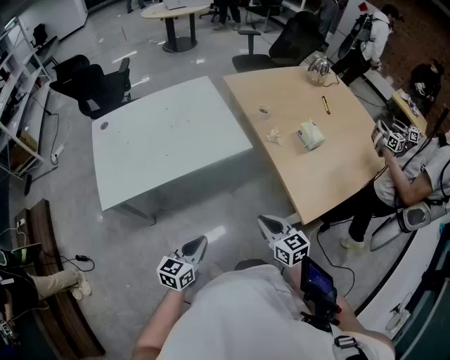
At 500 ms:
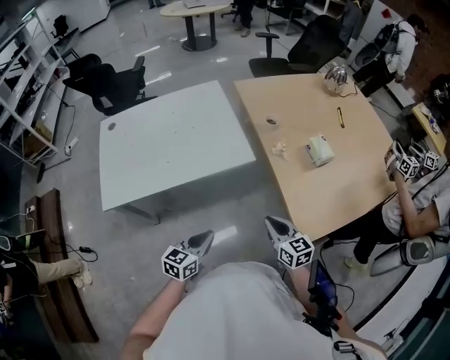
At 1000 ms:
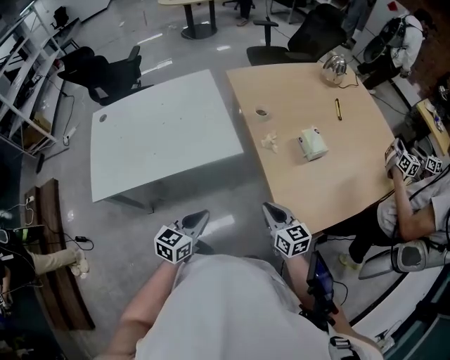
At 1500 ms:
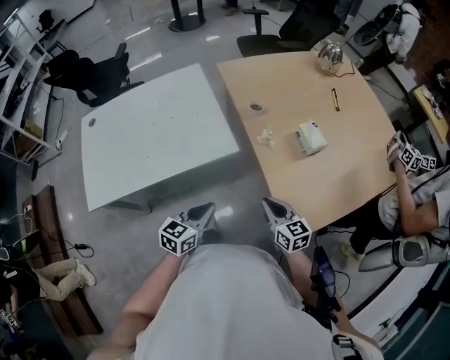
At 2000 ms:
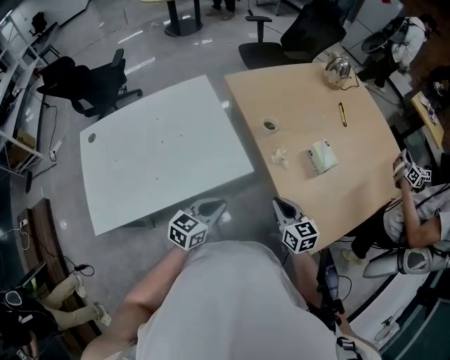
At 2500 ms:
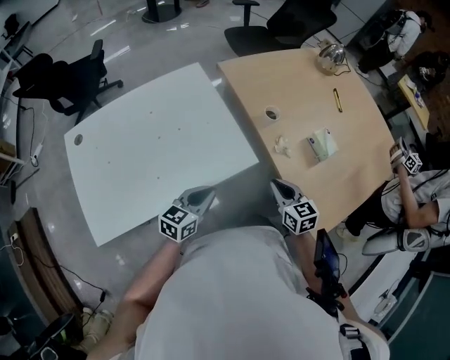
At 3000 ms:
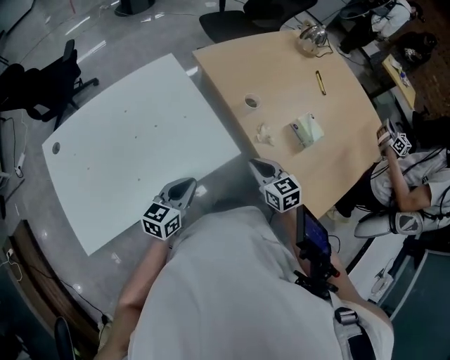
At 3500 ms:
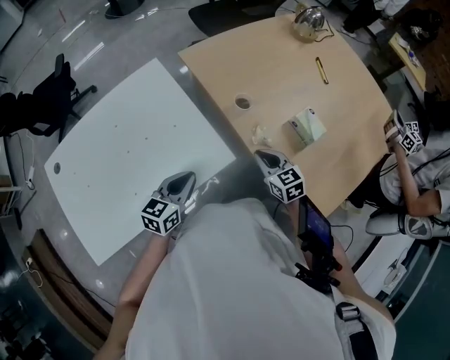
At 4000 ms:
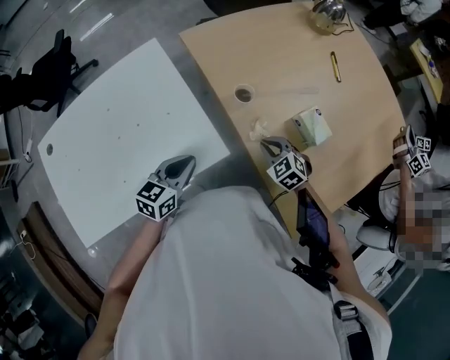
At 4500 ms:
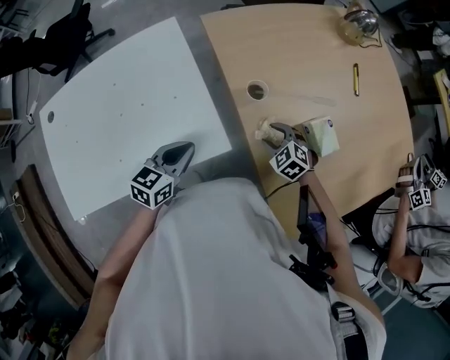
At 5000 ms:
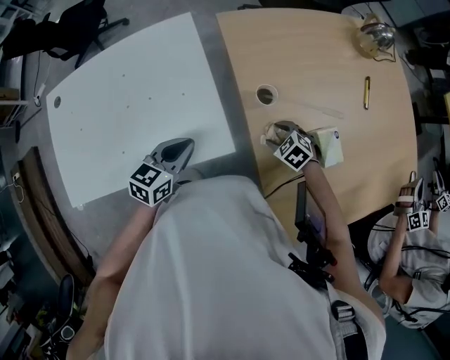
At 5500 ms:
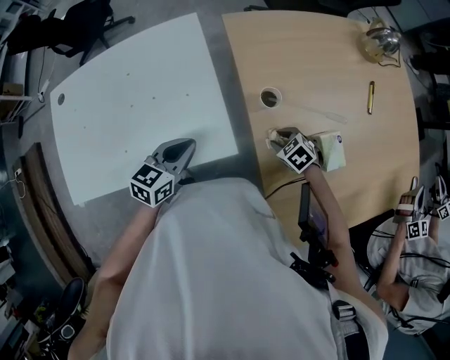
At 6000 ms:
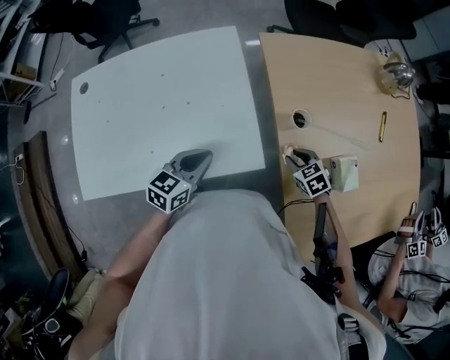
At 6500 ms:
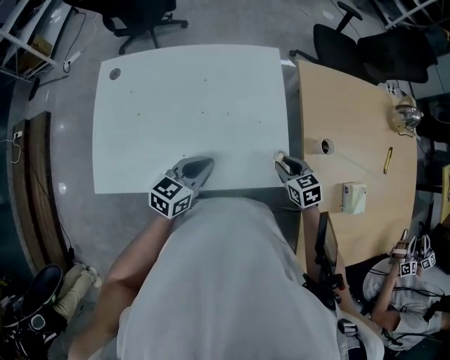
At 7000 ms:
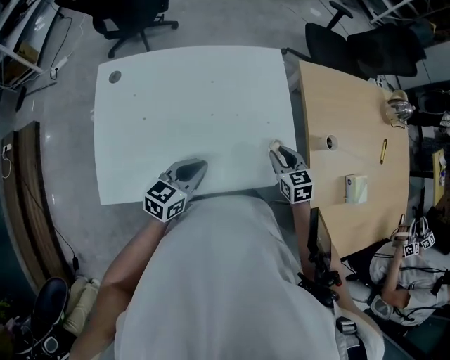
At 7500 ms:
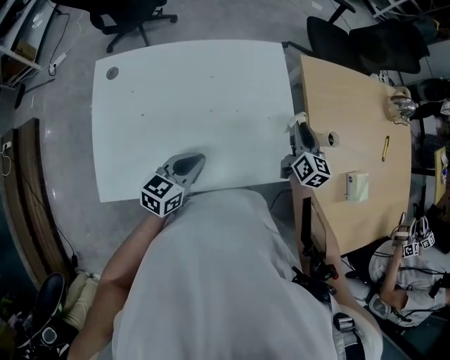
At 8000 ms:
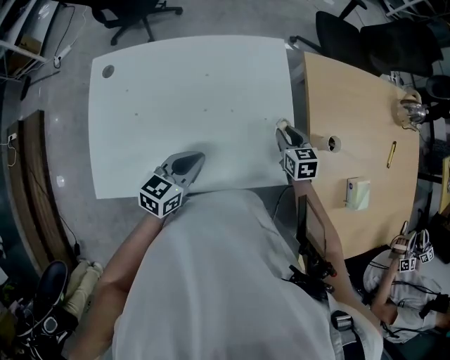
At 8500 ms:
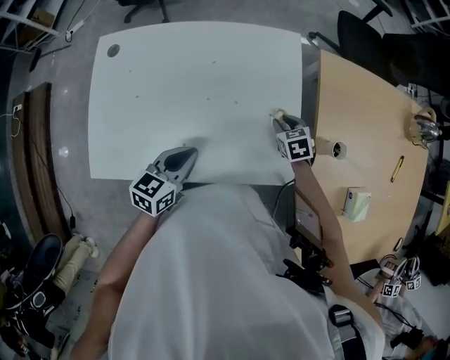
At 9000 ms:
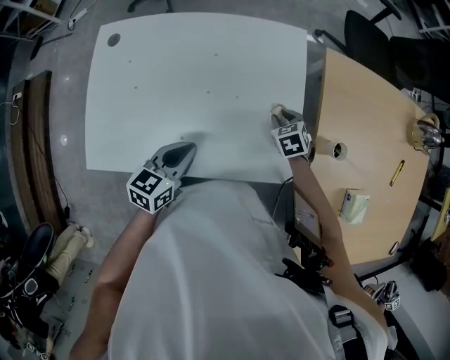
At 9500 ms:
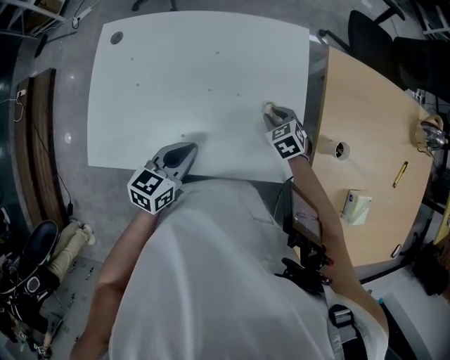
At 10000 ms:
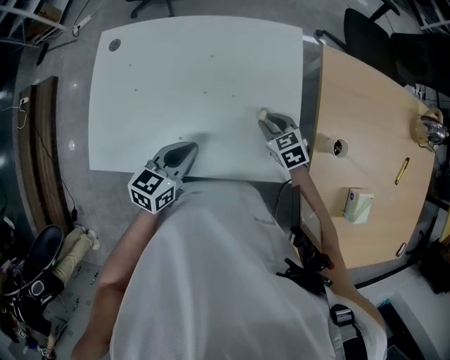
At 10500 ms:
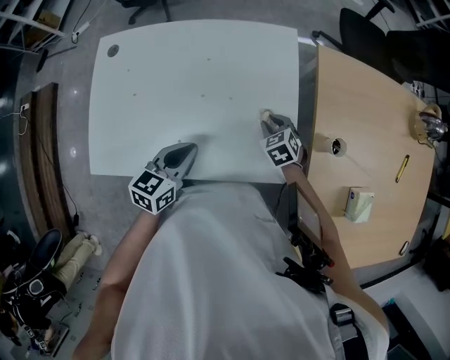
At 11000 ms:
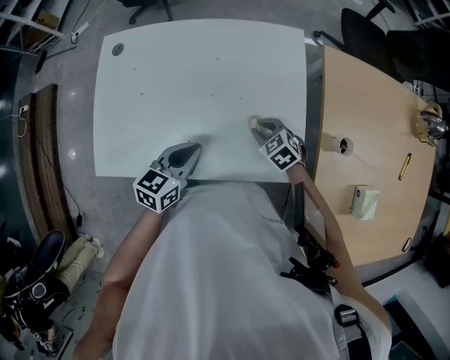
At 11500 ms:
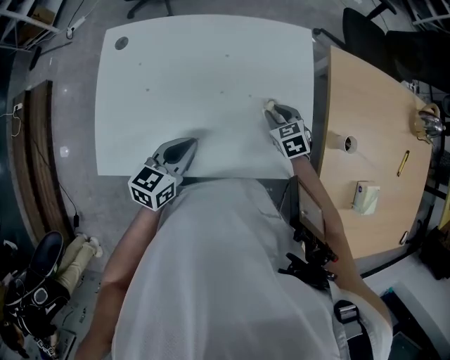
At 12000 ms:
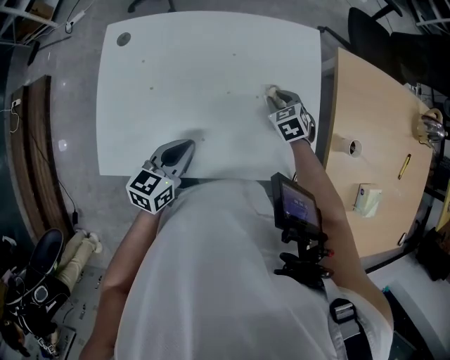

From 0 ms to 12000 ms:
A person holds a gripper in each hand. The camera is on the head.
From 0 ms to 2000 ms: The two grippers go some 25 cm forward.
From 2000 ms to 4000 ms: The left gripper is displaced forward by some 15 cm, while the right gripper is displaced forward and downward by roughly 20 cm, and swivels some 40 degrees.
From 4000 ms to 6000 ms: The left gripper travels to the left by some 5 cm; the right gripper ends up approximately 5 cm from where it was, and opens, then closes again.
From 6000 ms to 8000 ms: The right gripper heads to the left and forward, covering some 25 cm, and changes its angle by some 20 degrees, while the left gripper travels to the left by roughly 15 cm.
From 8000 ms to 10000 ms: The right gripper travels to the left by roughly 5 cm, and changes its angle by some 30 degrees.
From 10000 ms to 12000 ms: The left gripper shifts roughly 10 cm to the left. Meanwhile the right gripper shifts roughly 5 cm forward.

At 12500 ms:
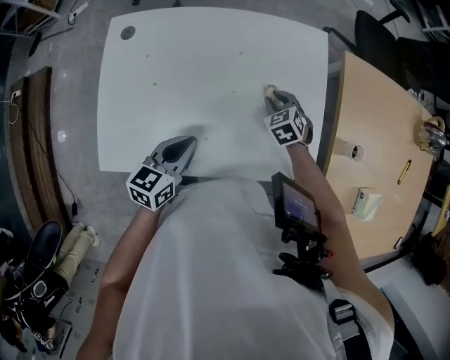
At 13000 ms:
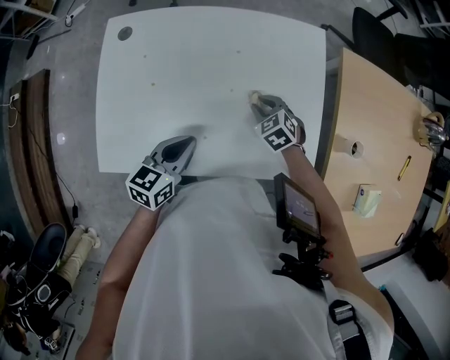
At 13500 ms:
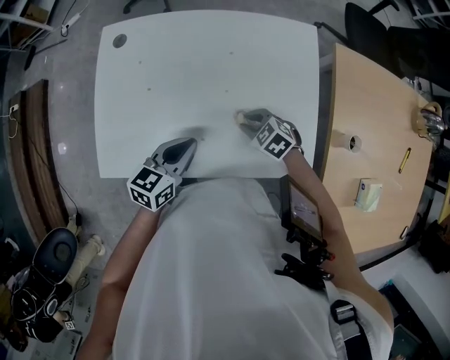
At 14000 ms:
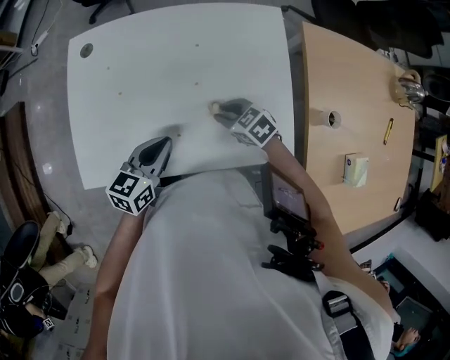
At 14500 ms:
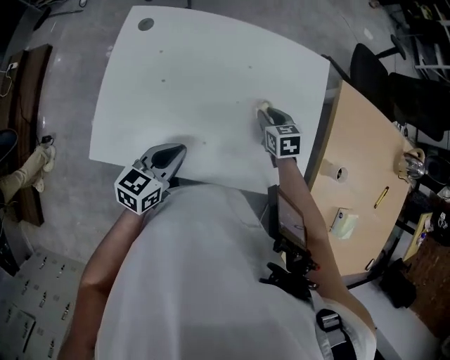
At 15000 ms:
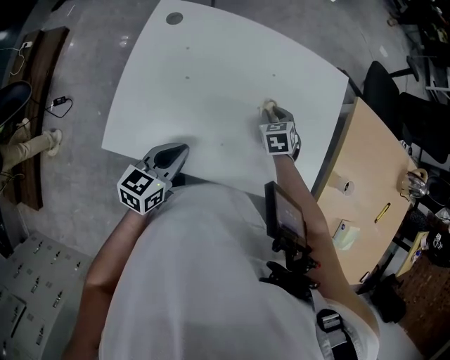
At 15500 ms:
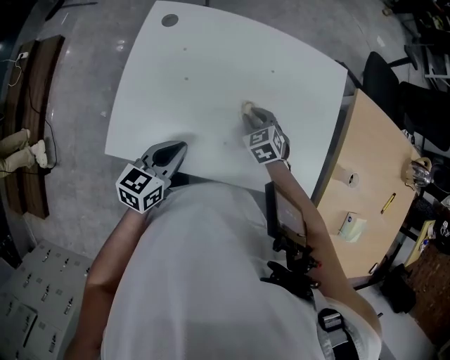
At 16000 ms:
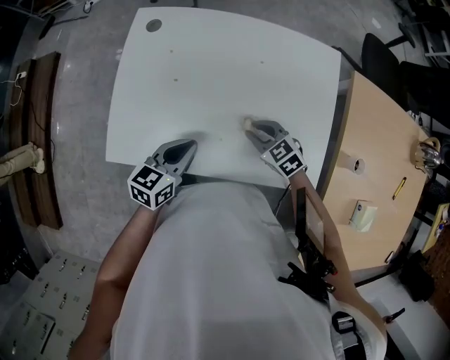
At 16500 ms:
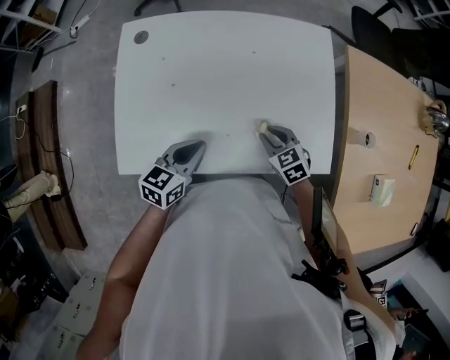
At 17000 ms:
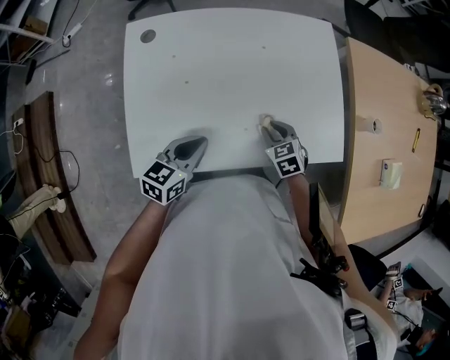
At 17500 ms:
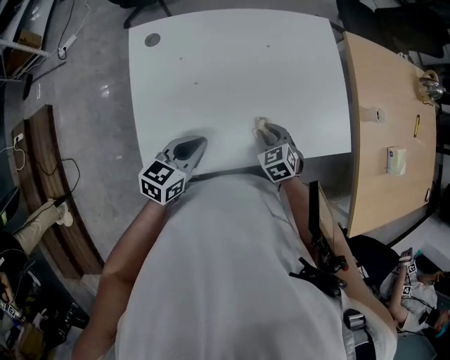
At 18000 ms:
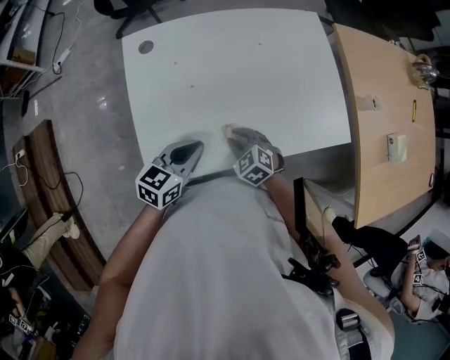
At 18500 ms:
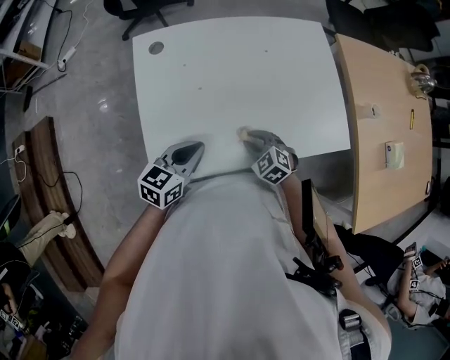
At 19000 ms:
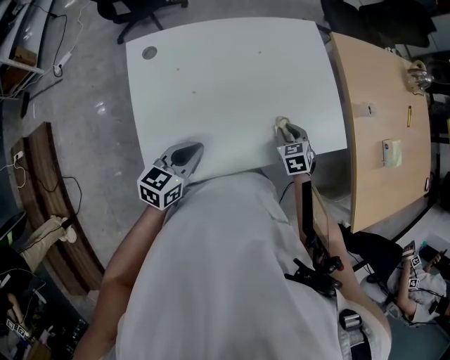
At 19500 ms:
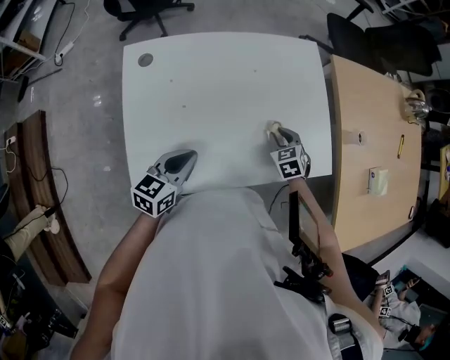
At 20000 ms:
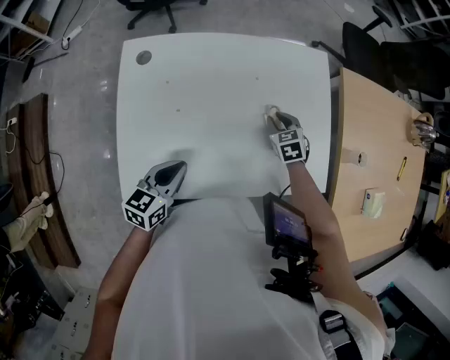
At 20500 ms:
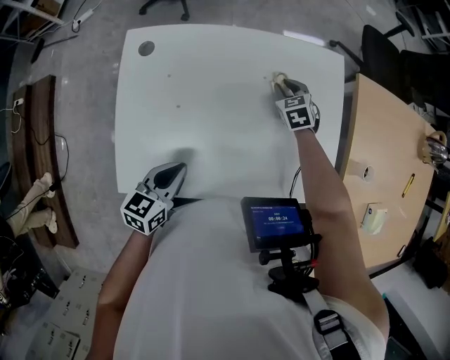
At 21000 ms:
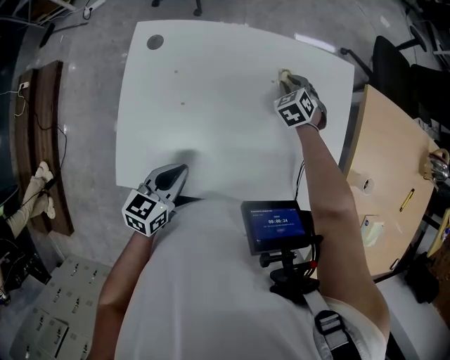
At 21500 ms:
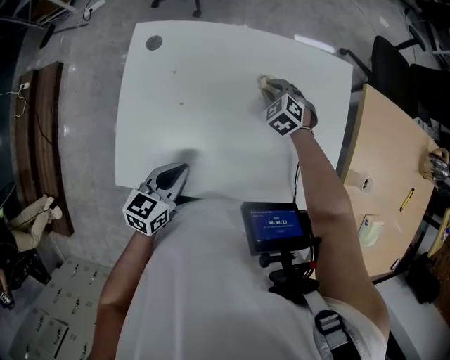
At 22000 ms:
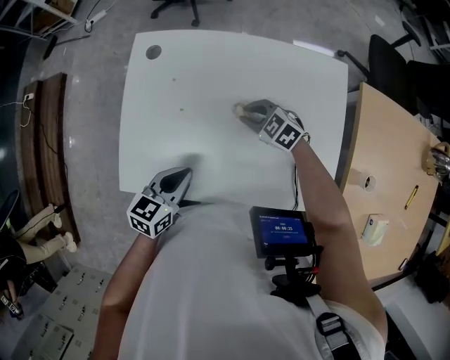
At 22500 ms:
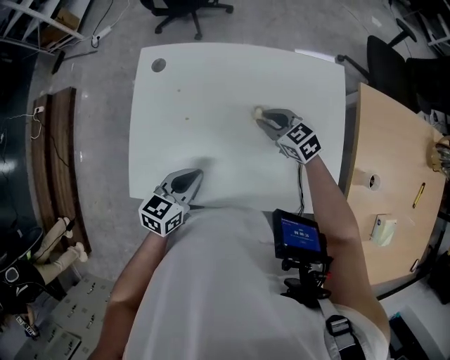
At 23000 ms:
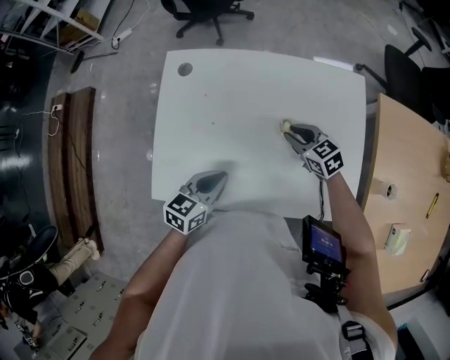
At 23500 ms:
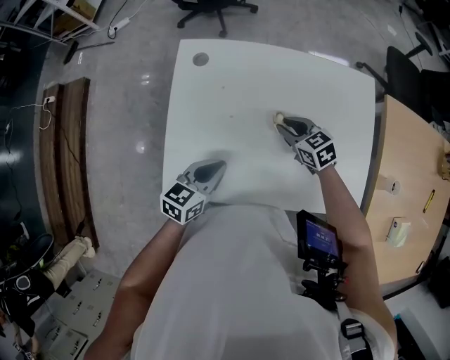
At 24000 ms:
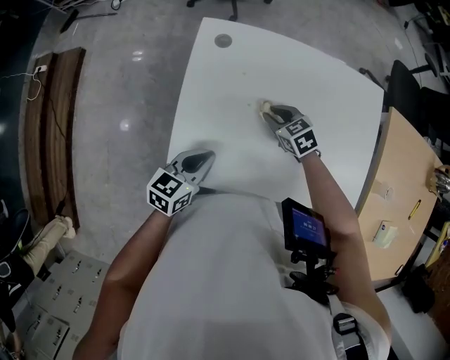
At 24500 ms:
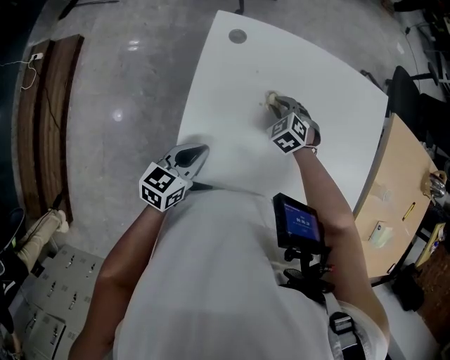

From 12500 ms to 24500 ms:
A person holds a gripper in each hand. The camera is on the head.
From 12500 ms to 14500 ms: The right gripper travels backward and back again, approximately 10 cm each way, and swivels about 20 degrees.
From 14500 ms to 16500 ms: The right gripper shifts roughly 15 cm backward.
From 16500 ms to 18500 ms: The right gripper travels to the left and backward by about 15 cm; the left gripper heads to the left, covering roughly 10 cm.
From 18500 ms to 20500 ms: The left gripper ends up roughly 5 cm from where it was. Meanwhile the right gripper travels forward by approximately 35 cm.
From 20500 ms to 22500 ms: The right gripper shifts by some 15 cm, and swivels about 30 degrees.
From 22500 ms to 24500 ms: The two grippers go roughly 20 cm to the left. The right gripper changes its angle by some 40 degrees.

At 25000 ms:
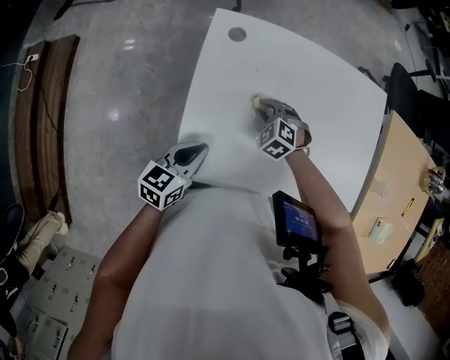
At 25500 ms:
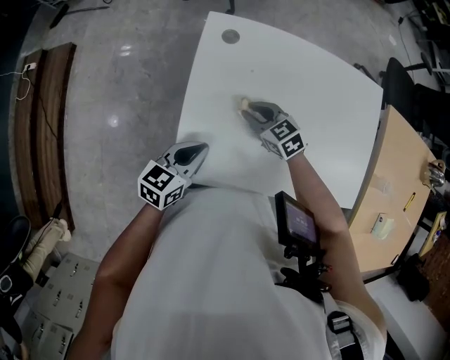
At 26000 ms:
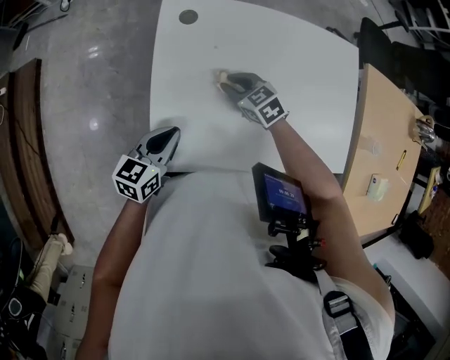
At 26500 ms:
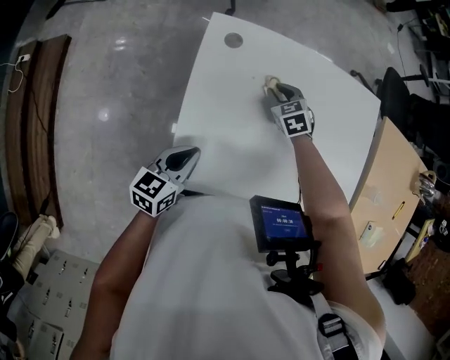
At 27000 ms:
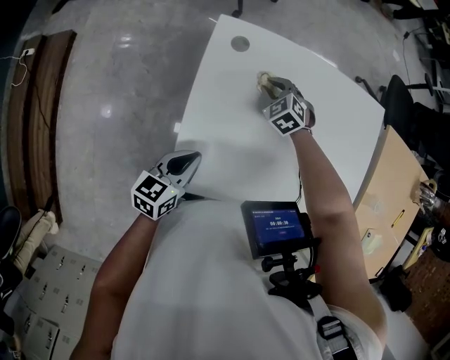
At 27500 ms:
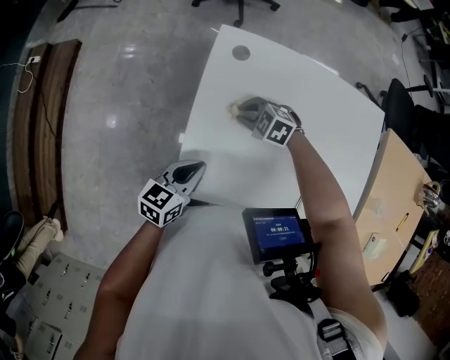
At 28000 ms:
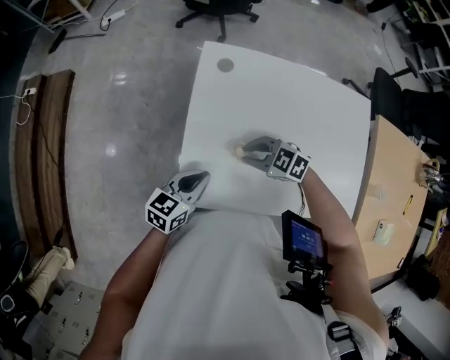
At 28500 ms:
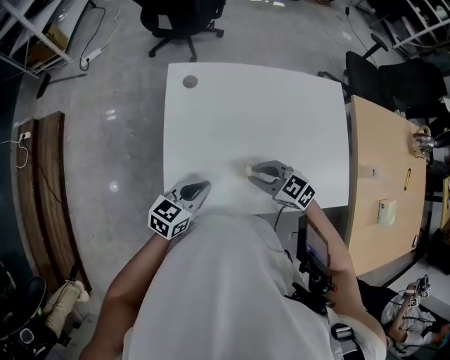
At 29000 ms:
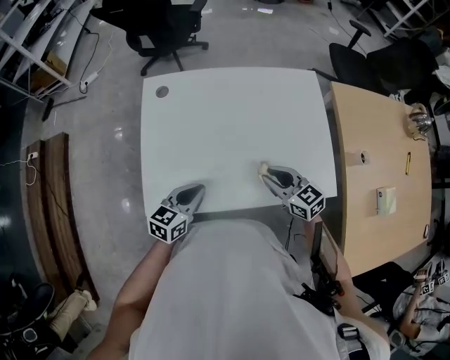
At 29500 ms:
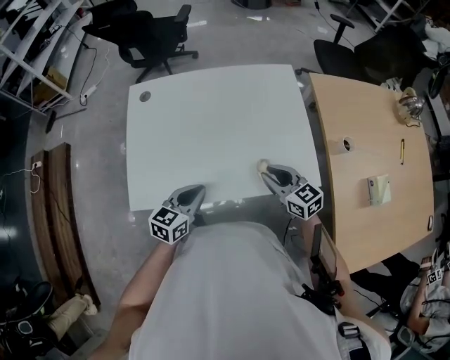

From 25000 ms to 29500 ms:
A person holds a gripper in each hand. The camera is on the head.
From 25000 ms to 27000 ms: The right gripper moves forward, about 10 cm.
From 27000 ms to 29500 ms: The right gripper shifts by about 40 cm, and tips its fingers upward by about 30 degrees. Meanwhile the left gripper ends up roughly 25 cm from where it was.
